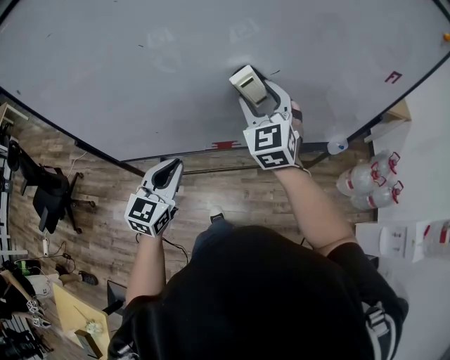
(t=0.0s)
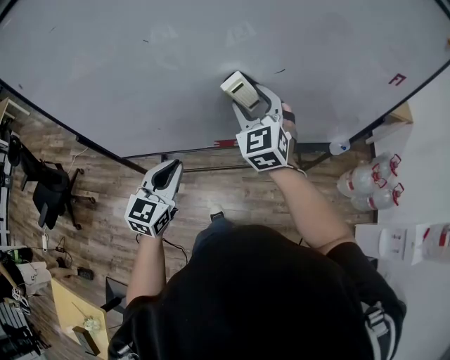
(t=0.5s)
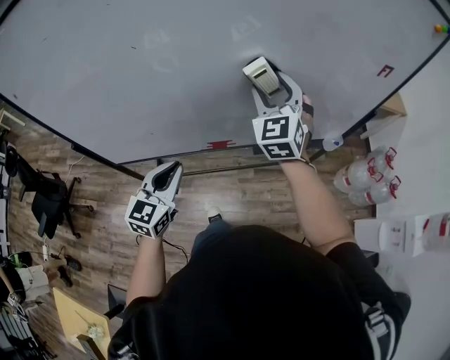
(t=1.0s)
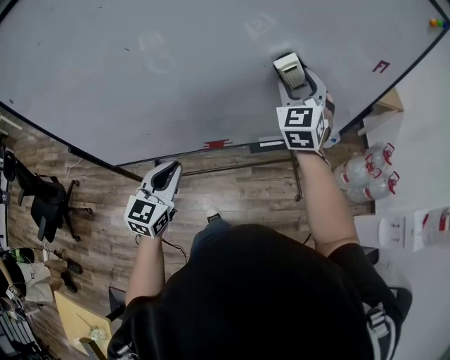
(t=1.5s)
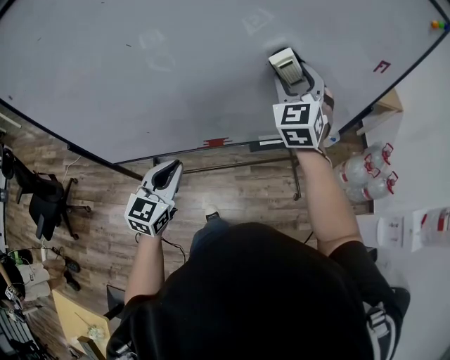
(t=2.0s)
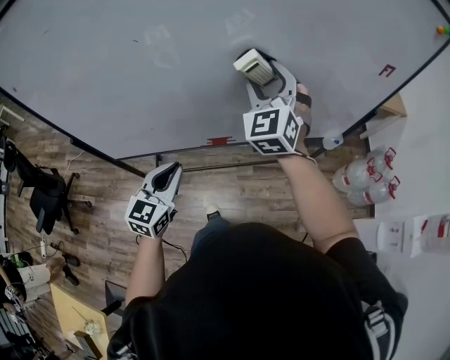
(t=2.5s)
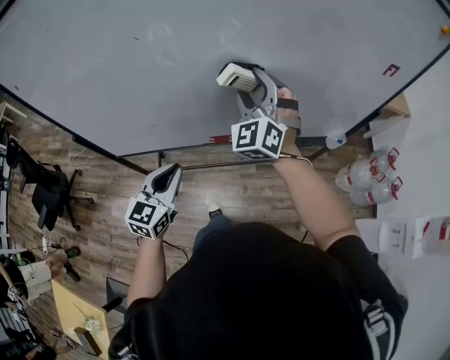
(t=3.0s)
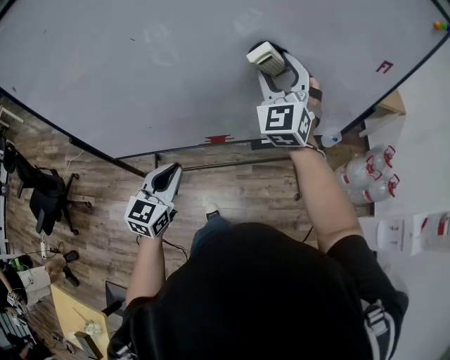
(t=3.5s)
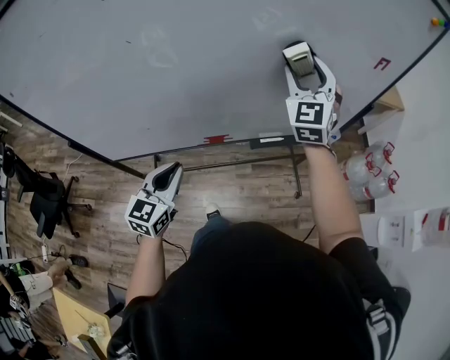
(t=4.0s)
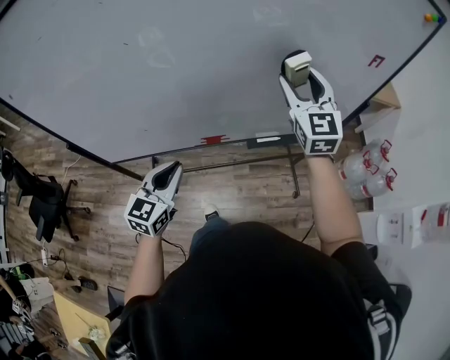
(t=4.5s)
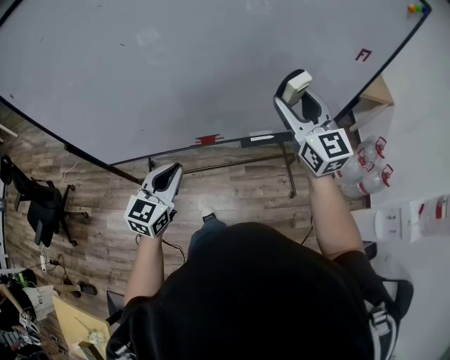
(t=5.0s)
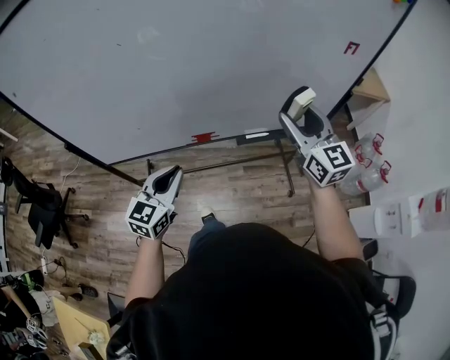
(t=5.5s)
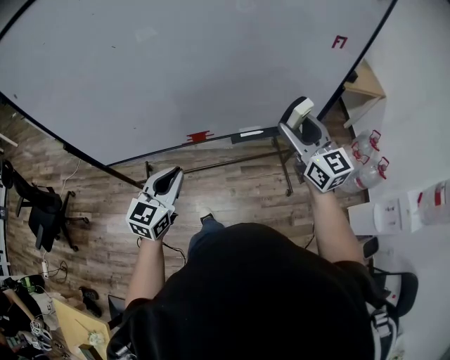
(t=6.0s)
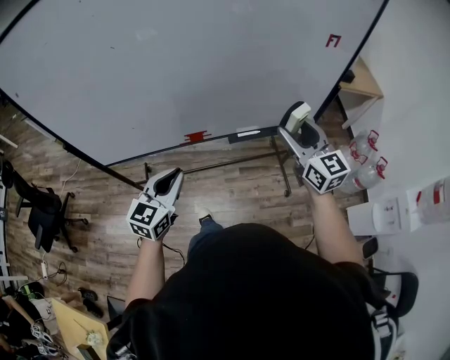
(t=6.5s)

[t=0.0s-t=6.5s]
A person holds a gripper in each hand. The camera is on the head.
t=0.0s to t=2.0s: The right gripper is displaced to the right by about 10 cm.
t=2.0s to t=4.5s: The right gripper reaches roughly 10 cm to the left, then returns, and swivels approximately 20 degrees.
t=4.5s to t=6.5s: The right gripper heads backward and to the right, covering approximately 20 cm, and changes its angle by roughly 20 degrees. Meanwhile the left gripper travels to the right and backward by roughly 10 cm.

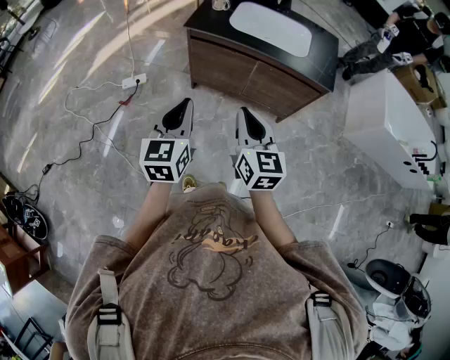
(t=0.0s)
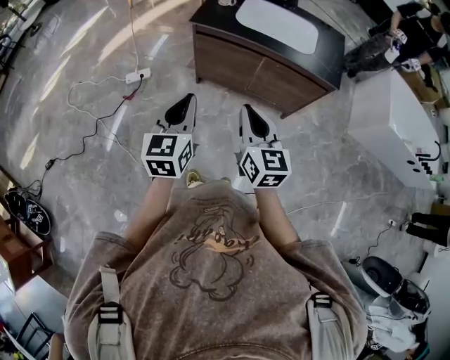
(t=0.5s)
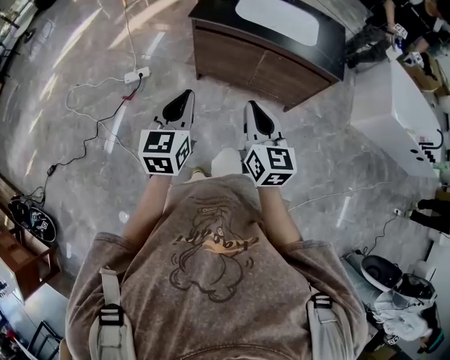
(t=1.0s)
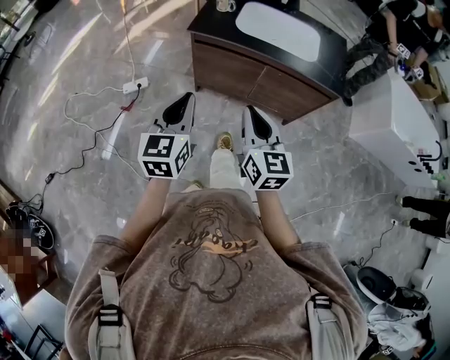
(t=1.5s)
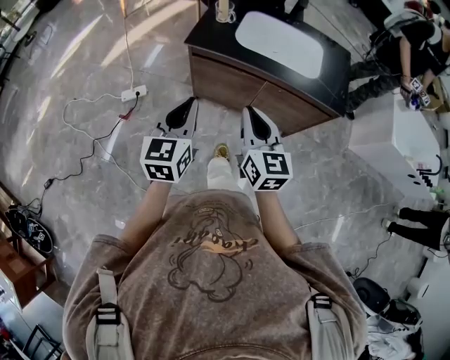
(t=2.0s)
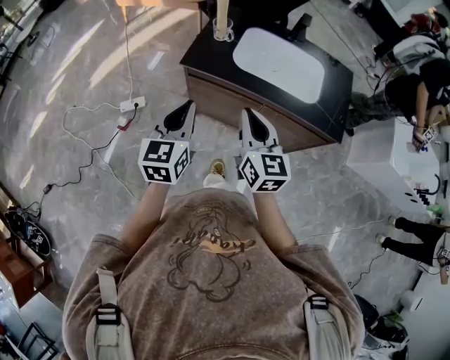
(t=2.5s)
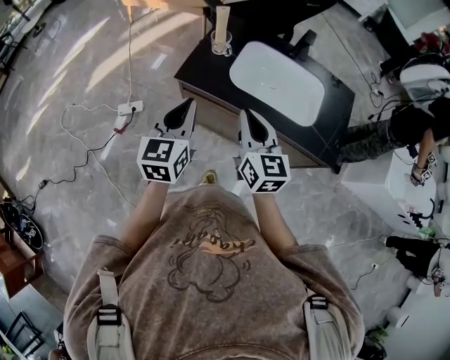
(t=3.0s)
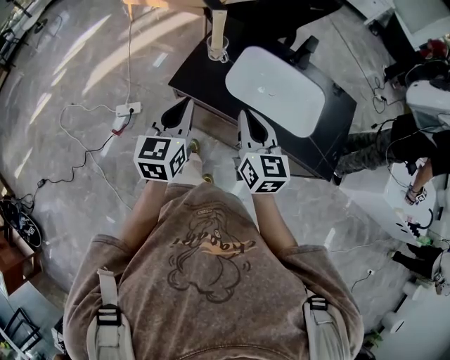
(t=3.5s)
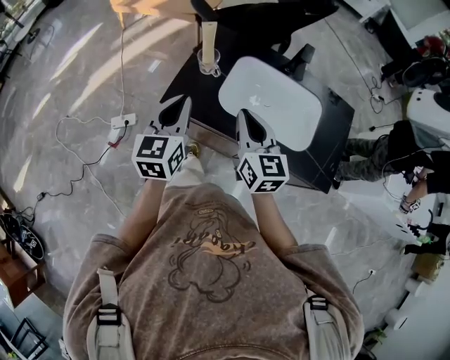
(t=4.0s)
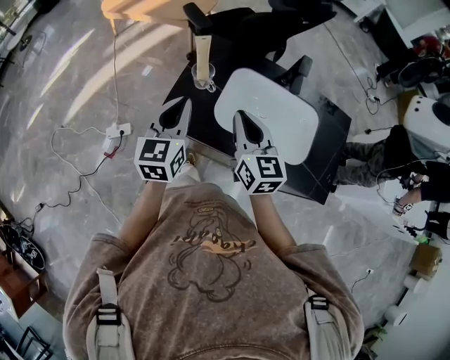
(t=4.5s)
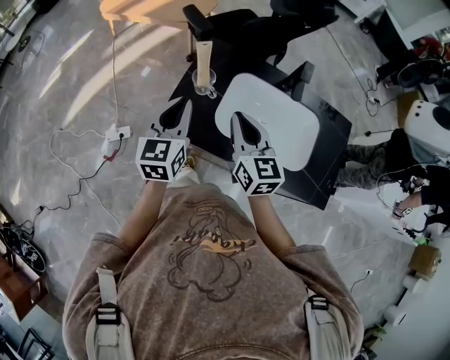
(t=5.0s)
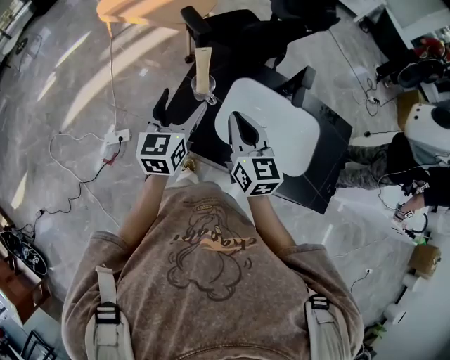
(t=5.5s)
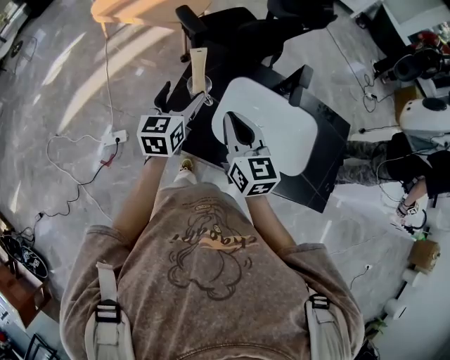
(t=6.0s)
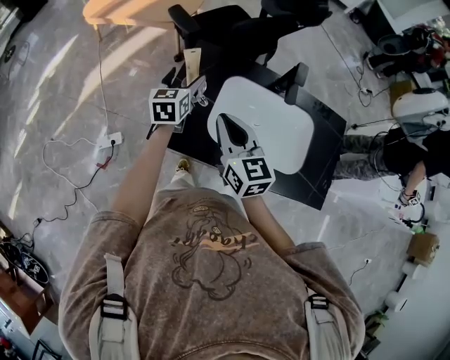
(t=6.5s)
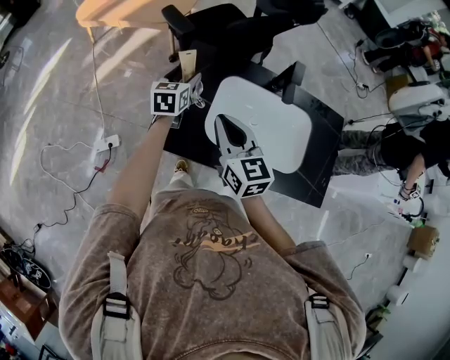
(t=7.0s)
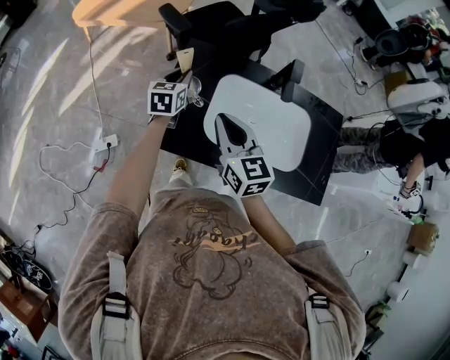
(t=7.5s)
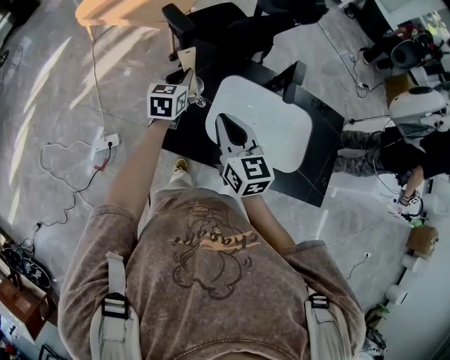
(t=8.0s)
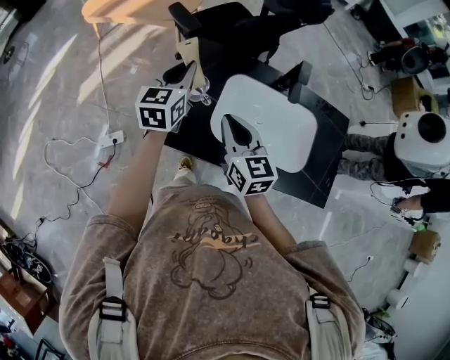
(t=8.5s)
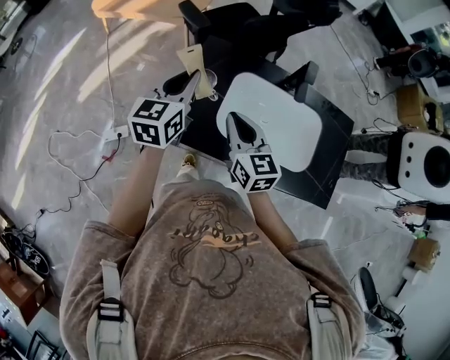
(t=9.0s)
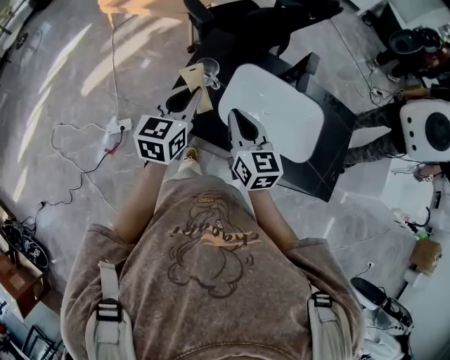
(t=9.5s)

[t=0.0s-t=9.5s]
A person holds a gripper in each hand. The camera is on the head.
t=0.0s to t=2.0s: The two grippers go approximately 15 cm forward.
t=2.0s to t=4.0s: The grippers both shift forward by approximately 30 cm.
t=4.0s to t=5.5s: Both grippers move forward, some 15 cm. The left gripper opens its fingers.
t=5.5s to t=7.5s: The left gripper is displaced forward and downward by approximately 20 cm, swivels approximately 20 degrees, and closes its fingers.
t=7.5s to t=9.5s: The left gripper heads backward and upward, covering some 20 cm. The right gripper goes approximately 5 cm backward.

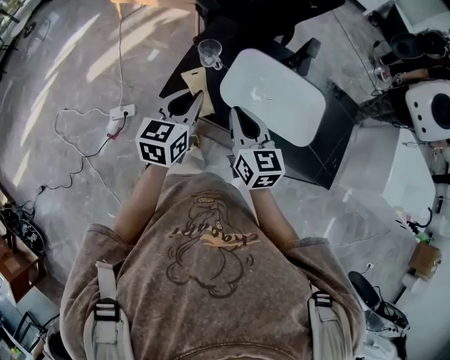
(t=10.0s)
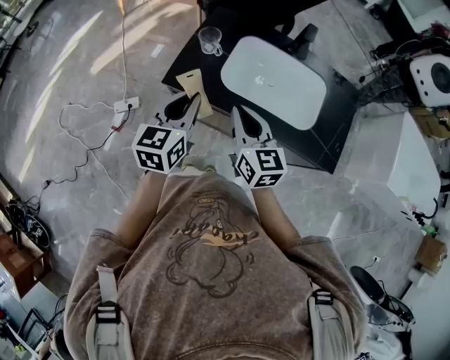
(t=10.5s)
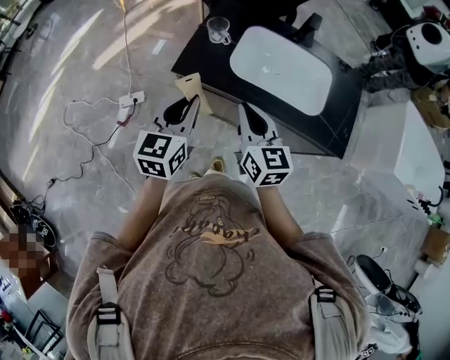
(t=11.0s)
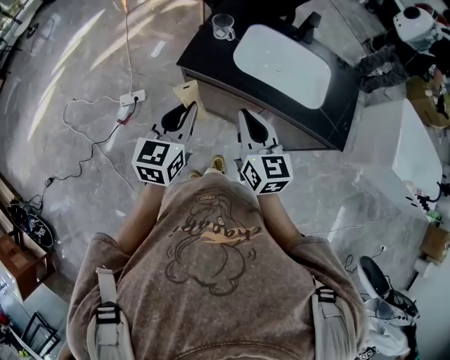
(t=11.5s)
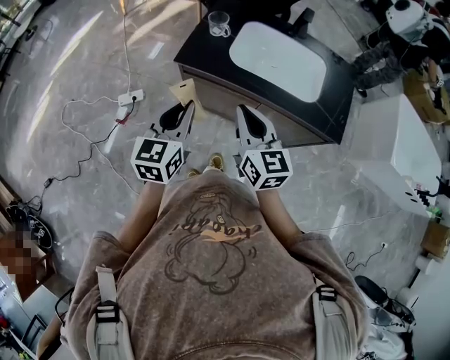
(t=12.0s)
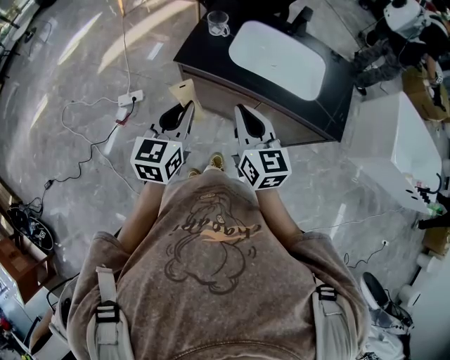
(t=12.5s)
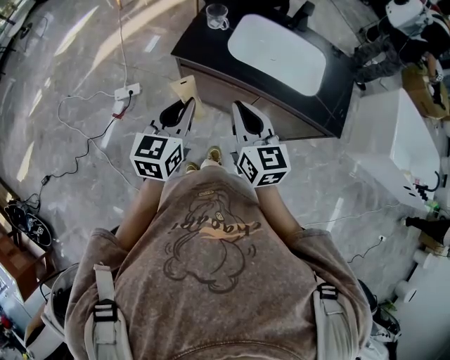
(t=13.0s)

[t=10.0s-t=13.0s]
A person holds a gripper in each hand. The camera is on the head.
t=10.0s to t=11.5s: The grippers both shift backward by some 20 cm.
t=11.5s to t=13.0s: The grippers make only small movements.

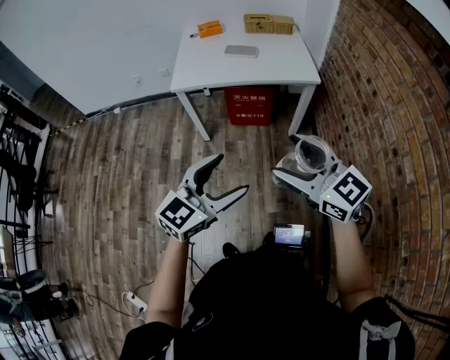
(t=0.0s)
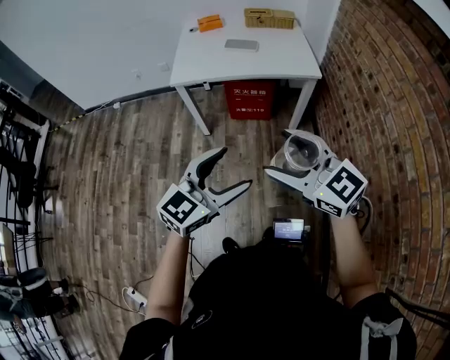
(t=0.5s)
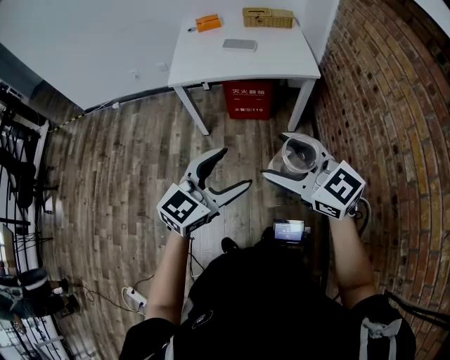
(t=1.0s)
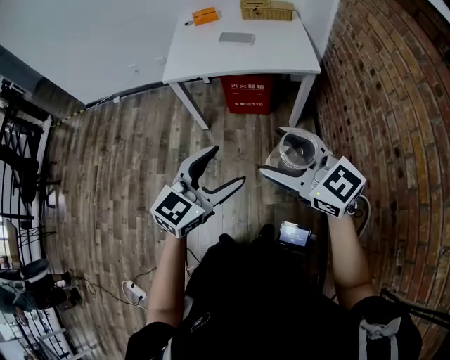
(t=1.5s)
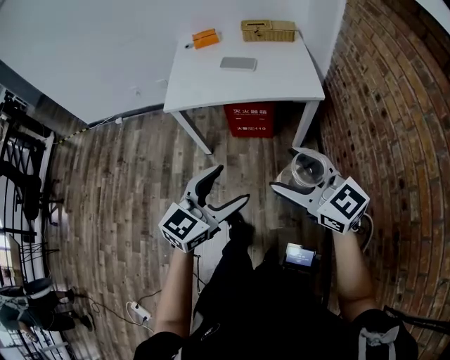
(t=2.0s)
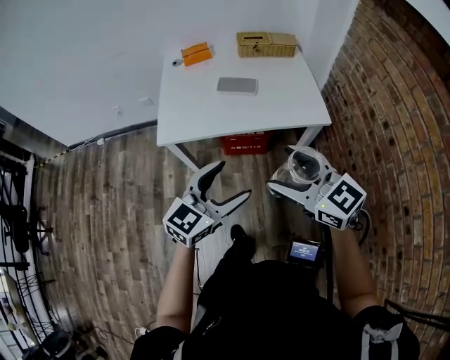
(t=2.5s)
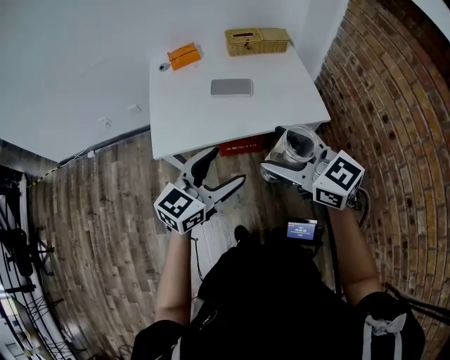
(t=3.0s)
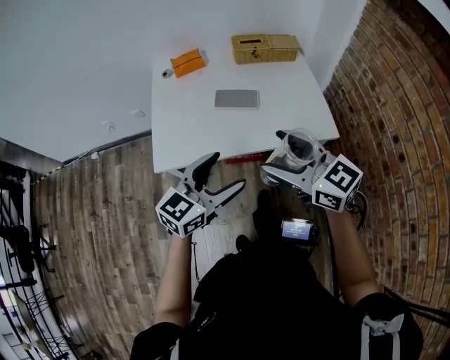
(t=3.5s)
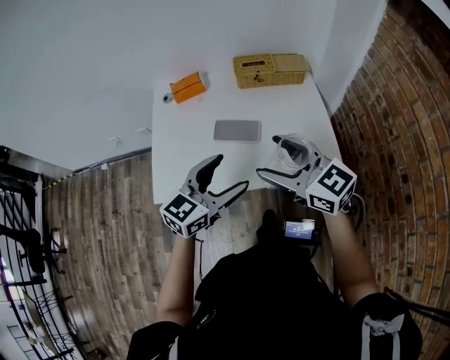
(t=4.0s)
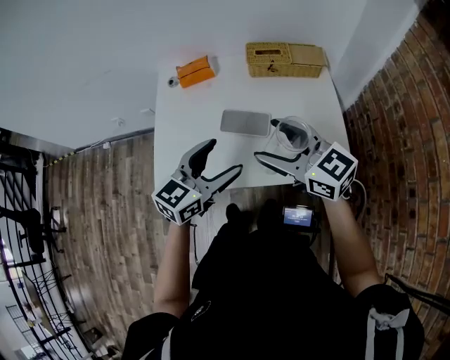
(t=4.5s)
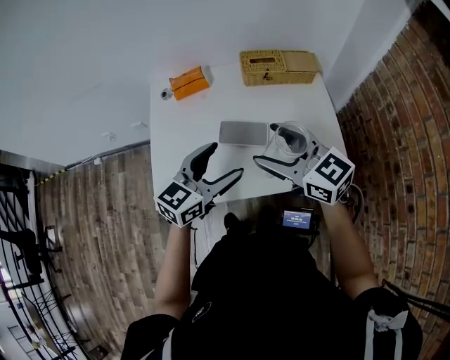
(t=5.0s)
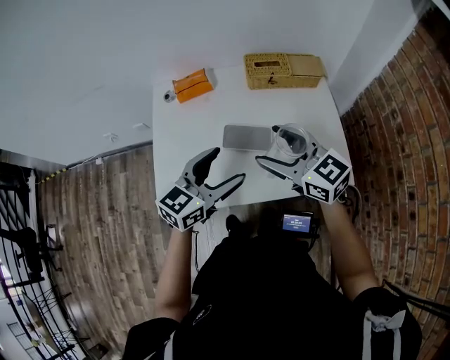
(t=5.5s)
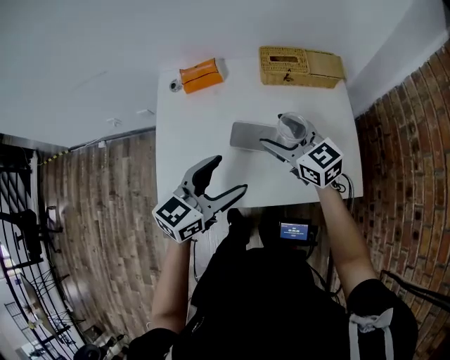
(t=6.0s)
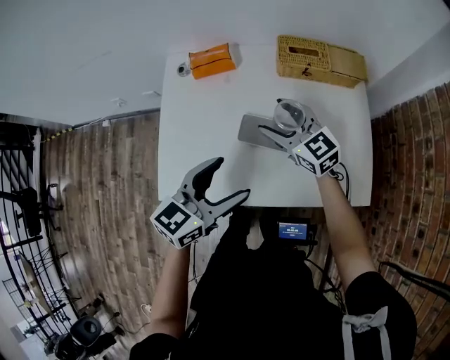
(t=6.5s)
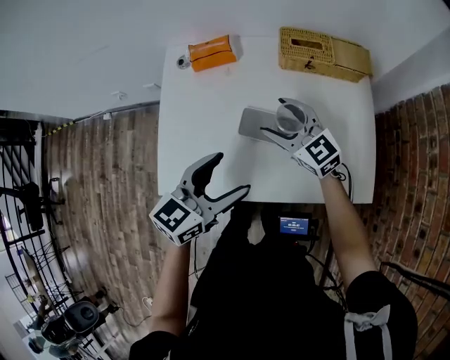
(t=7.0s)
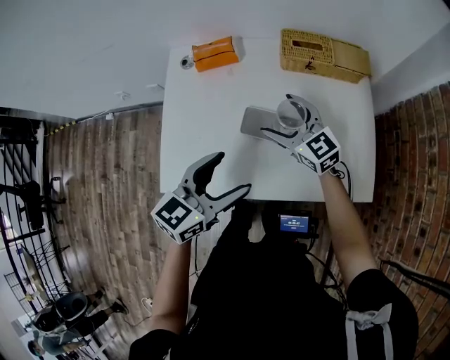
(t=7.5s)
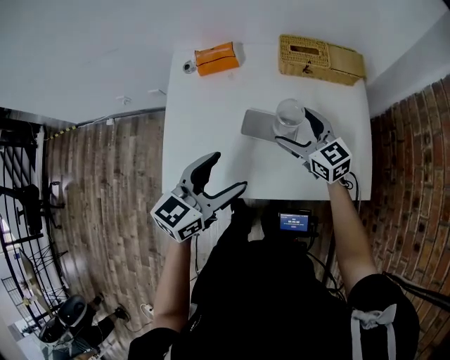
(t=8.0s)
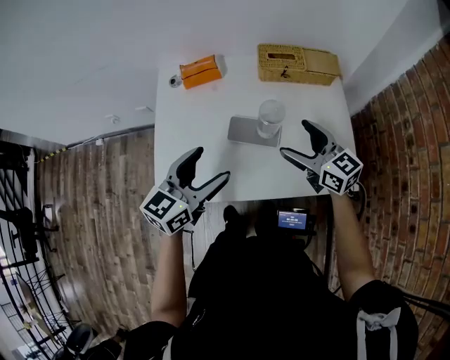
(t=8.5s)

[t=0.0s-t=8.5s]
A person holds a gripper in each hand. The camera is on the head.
t=0.0s to t=2.0s: The grippers both shift forward by about 10 cm.
t=2.0s to t=4.0s: The pair of grippers is taken forward, roughly 50 cm.
t=4.0s to t=6.5s: The left gripper travels forward and to the left by about 10 cm. Meanwhile the right gripper travels forward and downward by some 25 cm.
t=6.5s to t=8.5s: The right gripper travels to the right and backward by roughly 10 cm.
